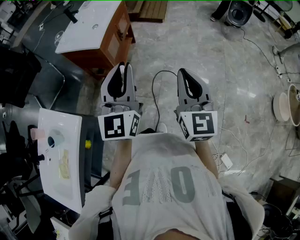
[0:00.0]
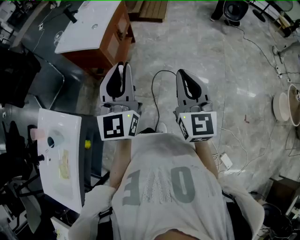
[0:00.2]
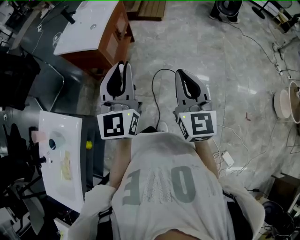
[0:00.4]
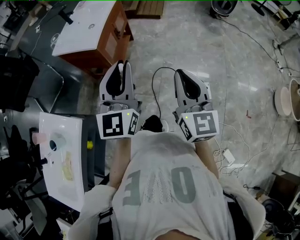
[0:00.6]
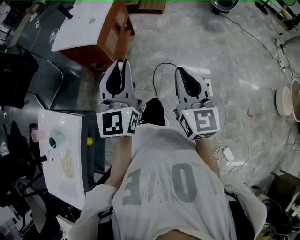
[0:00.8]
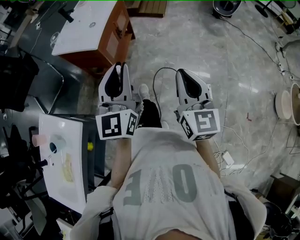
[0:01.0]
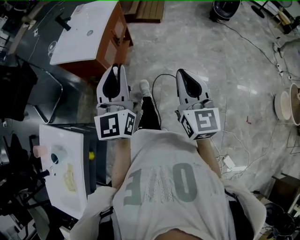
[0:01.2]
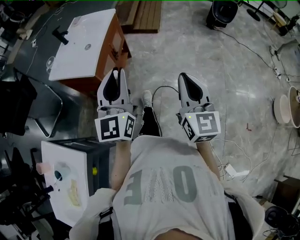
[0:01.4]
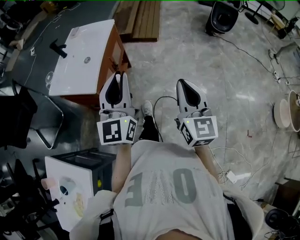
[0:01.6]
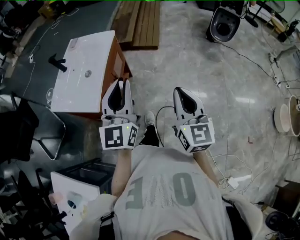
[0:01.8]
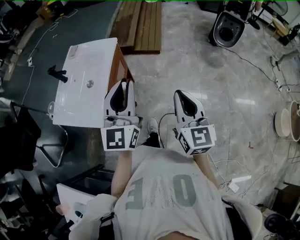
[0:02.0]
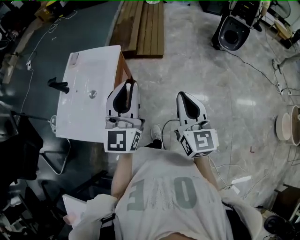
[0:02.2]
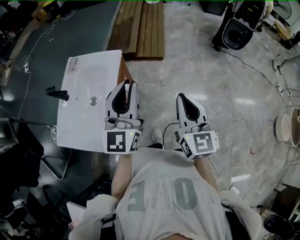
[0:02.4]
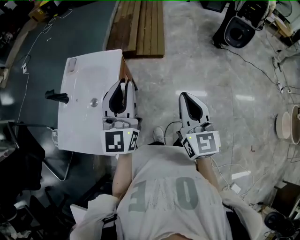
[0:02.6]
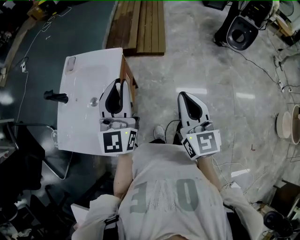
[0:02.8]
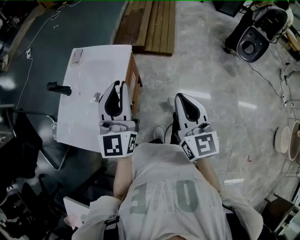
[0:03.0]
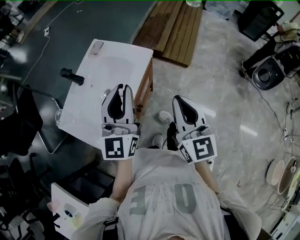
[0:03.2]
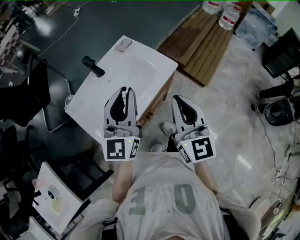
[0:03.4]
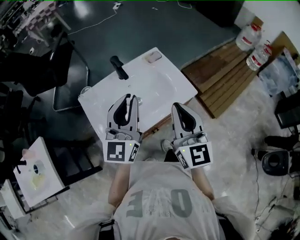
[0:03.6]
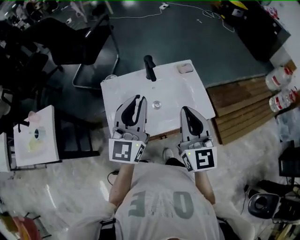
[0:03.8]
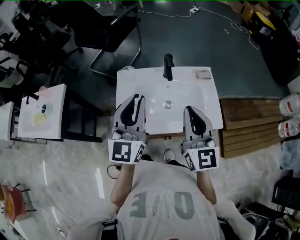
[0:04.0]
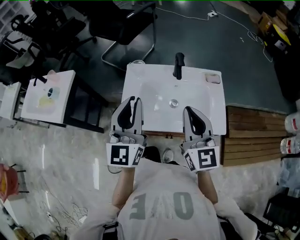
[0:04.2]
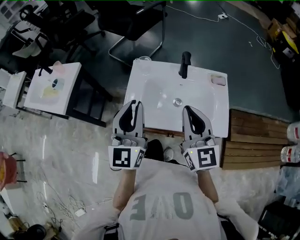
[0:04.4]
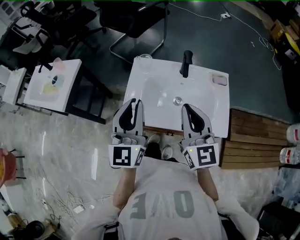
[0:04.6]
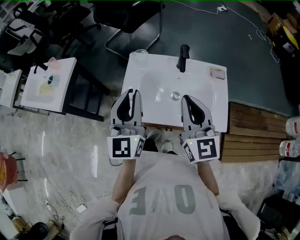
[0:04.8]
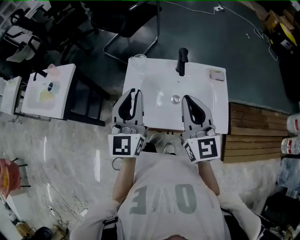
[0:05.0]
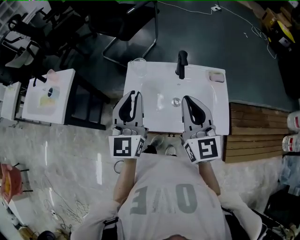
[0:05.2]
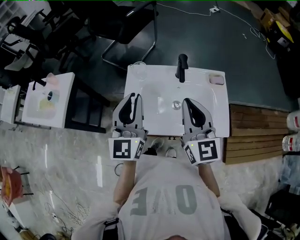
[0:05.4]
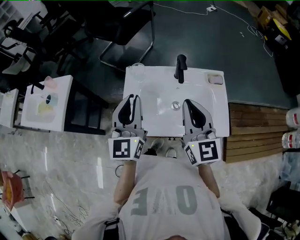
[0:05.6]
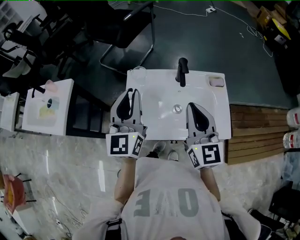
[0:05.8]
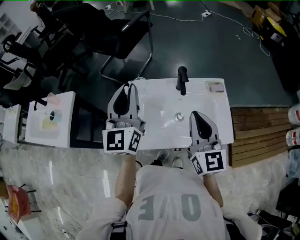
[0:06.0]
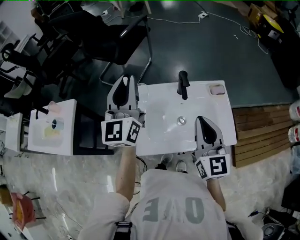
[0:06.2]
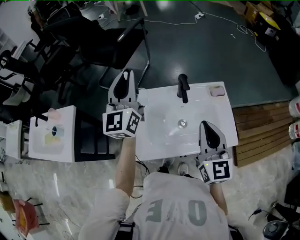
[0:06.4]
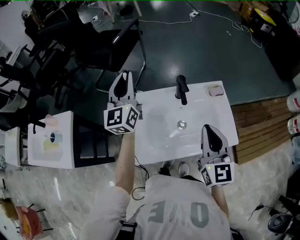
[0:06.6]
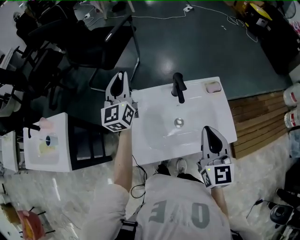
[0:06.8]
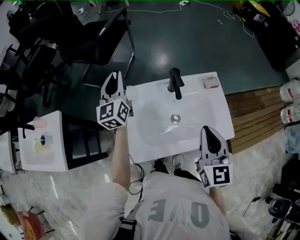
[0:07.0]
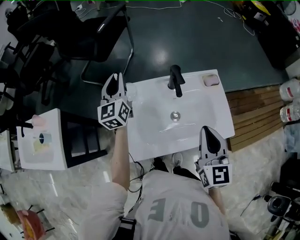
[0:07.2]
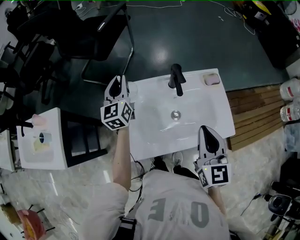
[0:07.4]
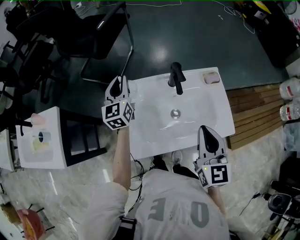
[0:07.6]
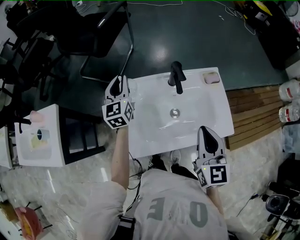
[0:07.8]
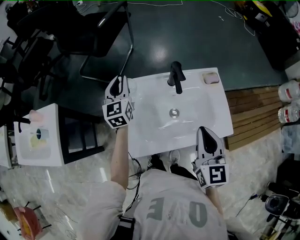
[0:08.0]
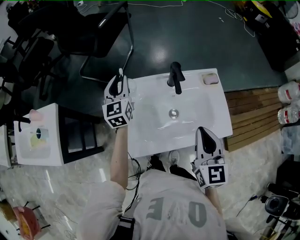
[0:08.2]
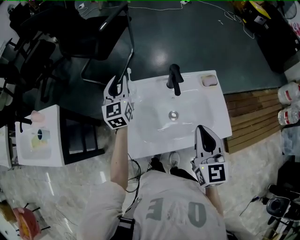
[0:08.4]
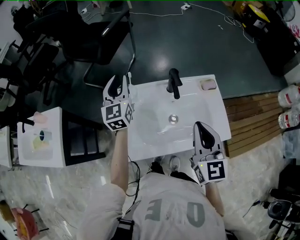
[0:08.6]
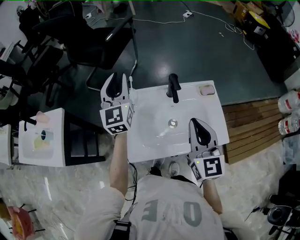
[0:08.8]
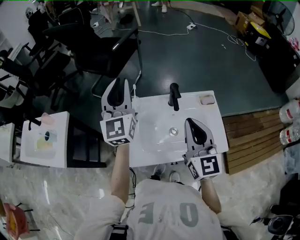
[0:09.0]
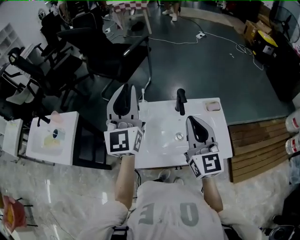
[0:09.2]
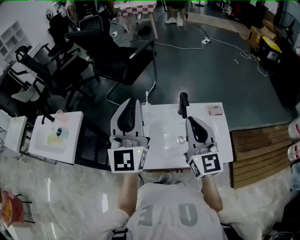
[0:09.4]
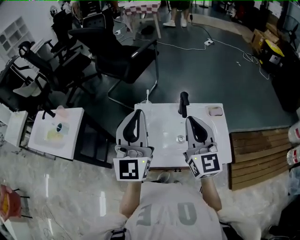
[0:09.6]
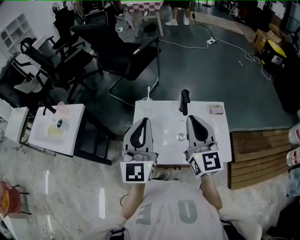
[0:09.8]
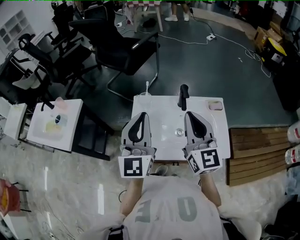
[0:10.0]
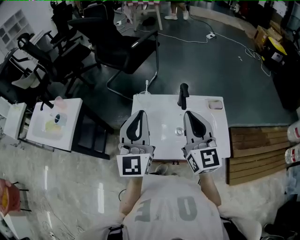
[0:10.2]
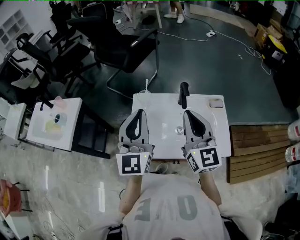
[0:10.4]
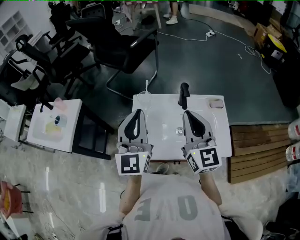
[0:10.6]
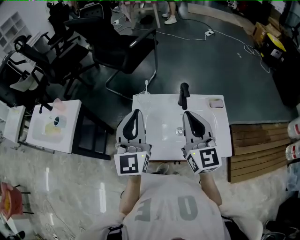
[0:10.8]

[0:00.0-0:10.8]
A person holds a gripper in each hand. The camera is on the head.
0:00.0 to 0:01.6: The two grippers go about 25 cm forward.
0:01.6 to 0:03.0: Both grippers move forward, some 35 cm.
0:03.0 to 0:04.6: The left gripper changes place by about 20 cm, and turns by approximately 90 degrees, while the right gripper changes place by about 30 cm, and turns by approximately 90 degrees.
0:04.6 to 0:06.2: The right gripper shifts some 5 cm forward. The left gripper is displaced forward by about 20 cm.
0:06.2 to 0:07.8: The left gripper heads downward and forward, covering some 25 cm, and changes its angle by approximately 20 degrees; the right gripper shifts approximately 5 cm downward.
0:07.8 to 0:09.2: The right gripper shifts some 10 cm upward, and changes its angle by some 30 degrees. The left gripper is displaced upward and backward by about 30 cm, and changes its angle by some 30 degrees.
0:09.2 to 0:10.8: The left gripper is displaced backward and downward by about 10 cm.

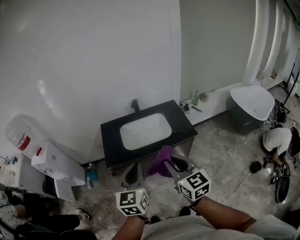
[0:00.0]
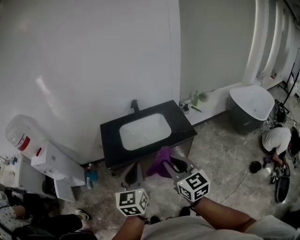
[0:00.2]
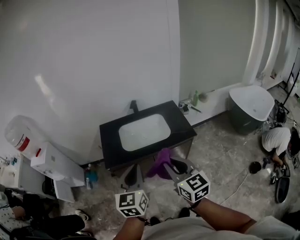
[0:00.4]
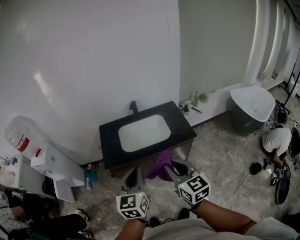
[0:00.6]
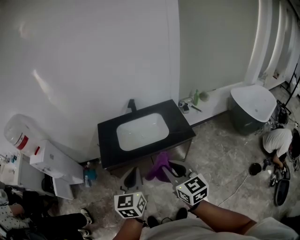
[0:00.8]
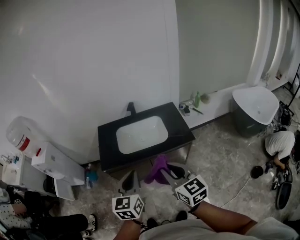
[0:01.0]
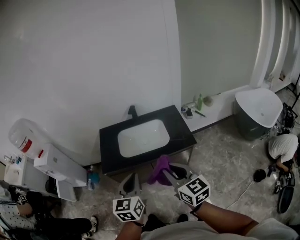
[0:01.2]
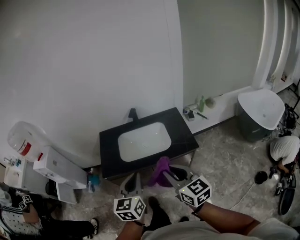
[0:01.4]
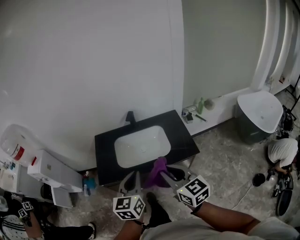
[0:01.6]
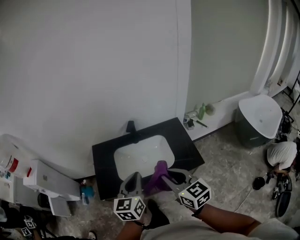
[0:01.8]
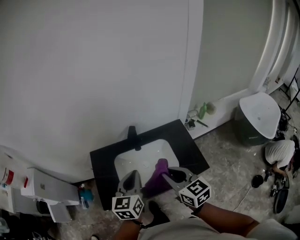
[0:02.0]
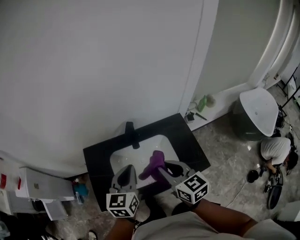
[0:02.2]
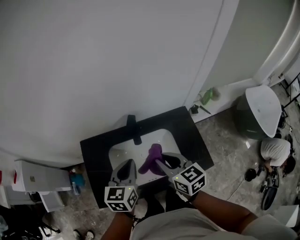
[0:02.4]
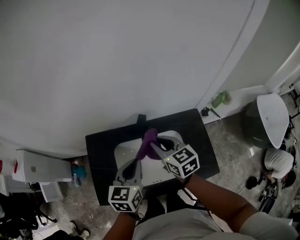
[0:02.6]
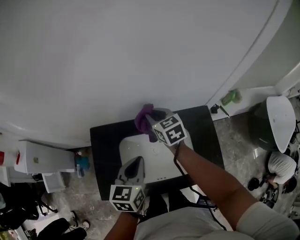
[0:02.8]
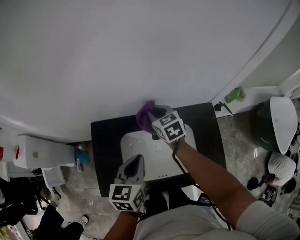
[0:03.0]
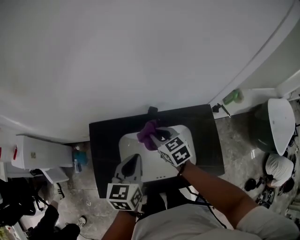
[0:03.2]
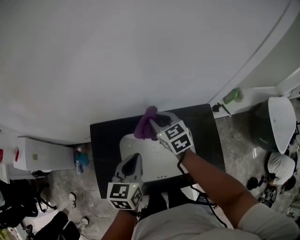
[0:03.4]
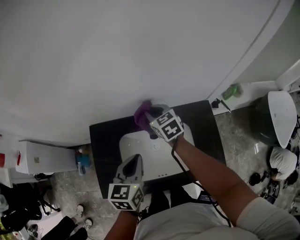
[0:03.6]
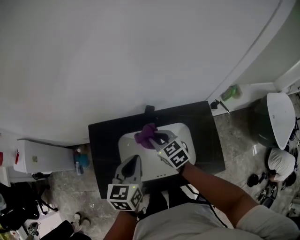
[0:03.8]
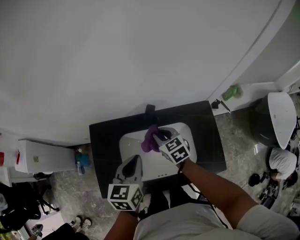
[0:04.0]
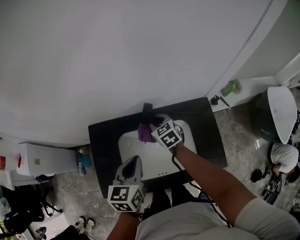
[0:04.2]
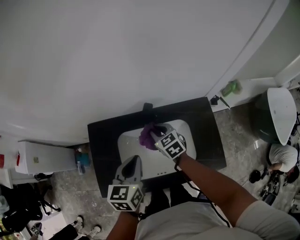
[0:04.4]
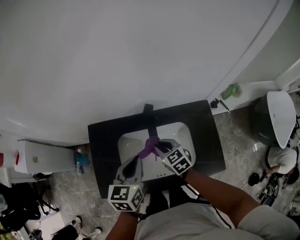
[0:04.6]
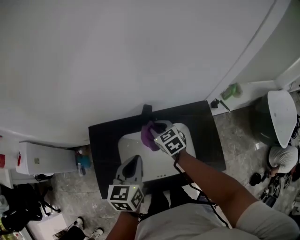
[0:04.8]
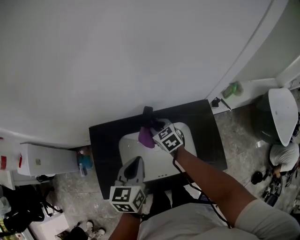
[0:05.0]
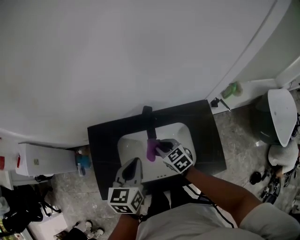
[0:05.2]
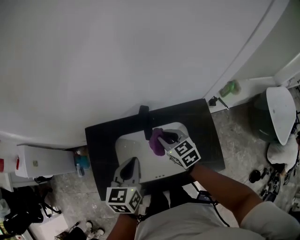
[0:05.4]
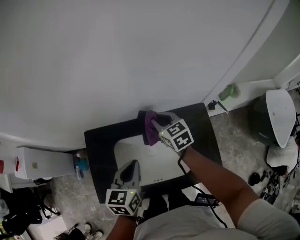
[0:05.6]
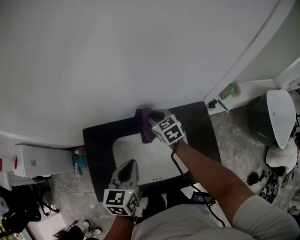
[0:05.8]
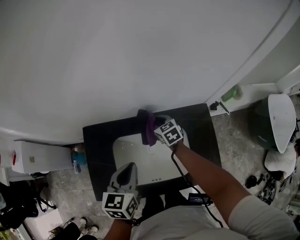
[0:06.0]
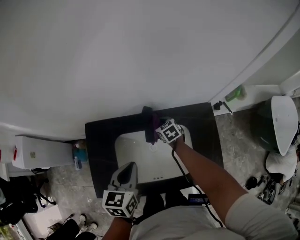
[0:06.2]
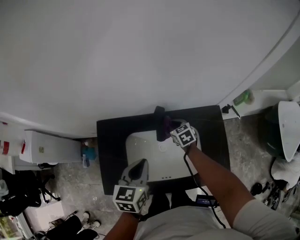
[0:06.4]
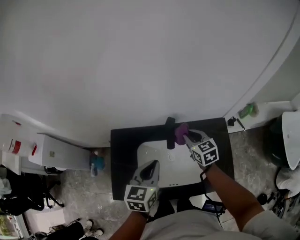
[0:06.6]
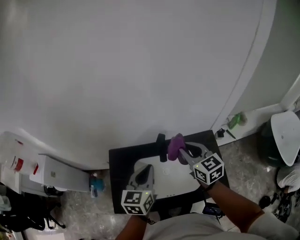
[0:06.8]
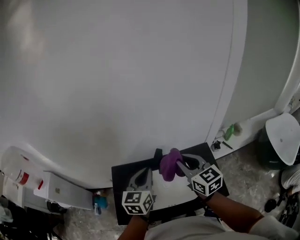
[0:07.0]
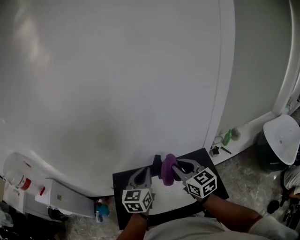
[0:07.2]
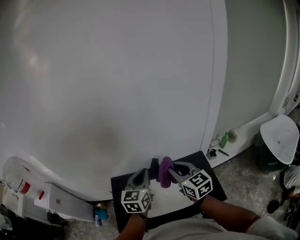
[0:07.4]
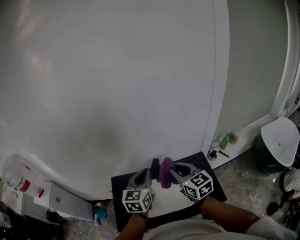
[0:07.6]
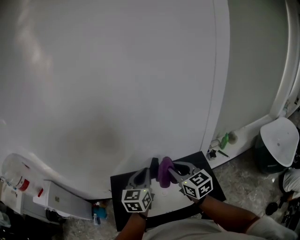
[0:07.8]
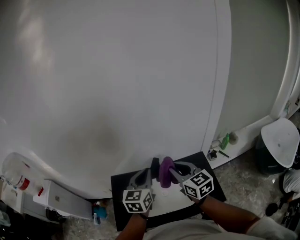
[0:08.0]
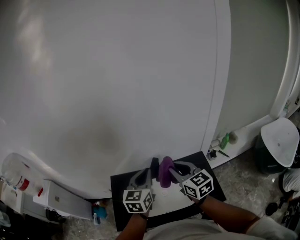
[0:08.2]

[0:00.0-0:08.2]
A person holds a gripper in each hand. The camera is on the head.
0:00.0 to 0:01.6: The left gripper goes approximately 20 cm forward, to the right and downward. Meanwhile the right gripper is displaced forward and to the right by approximately 15 cm.
0:01.6 to 0:03.2: The left gripper is displaced forward by about 35 cm. The right gripper heads forward and downward, covering approximately 50 cm, and rotates approximately 30 degrees.
0:03.2 to 0:05.0: The right gripper moves forward and backward over approximately 15 cm, changing direction 4 times.
0:05.0 to 0:06.6: The right gripper goes up and down, some 20 cm each way, reversing 2 times.
0:06.6 to 0:08.2: The left gripper moves upward, some 15 cm. The right gripper is displaced upward and backward by approximately 25 cm, and turns by some 20 degrees.

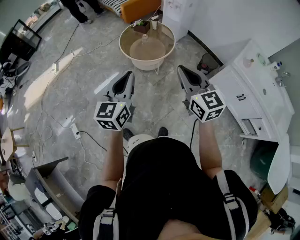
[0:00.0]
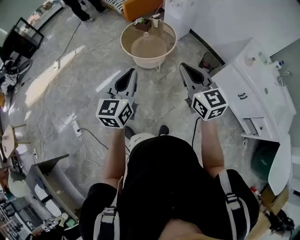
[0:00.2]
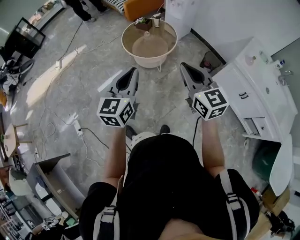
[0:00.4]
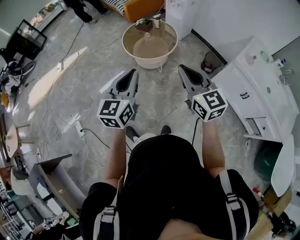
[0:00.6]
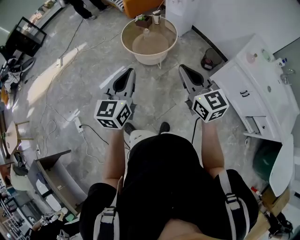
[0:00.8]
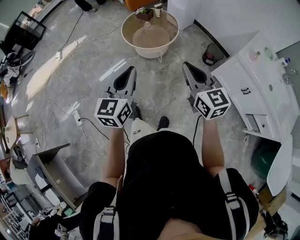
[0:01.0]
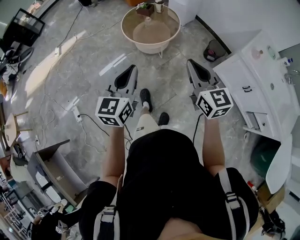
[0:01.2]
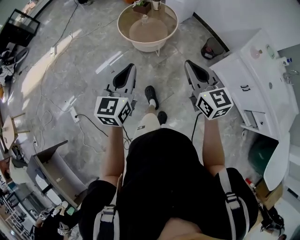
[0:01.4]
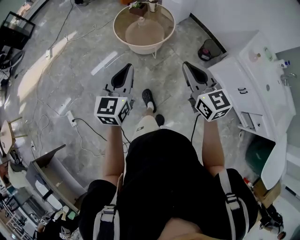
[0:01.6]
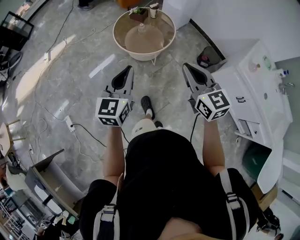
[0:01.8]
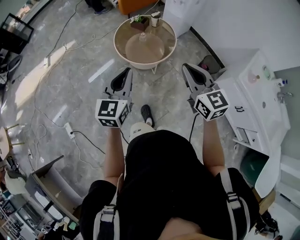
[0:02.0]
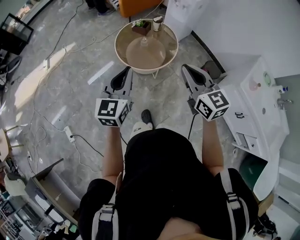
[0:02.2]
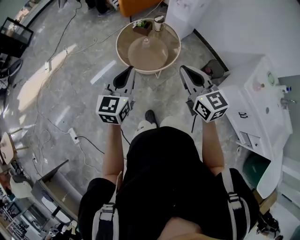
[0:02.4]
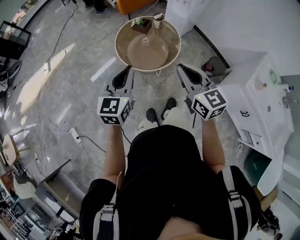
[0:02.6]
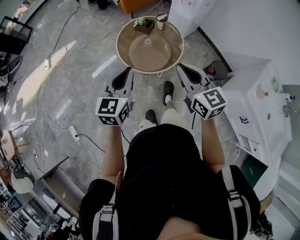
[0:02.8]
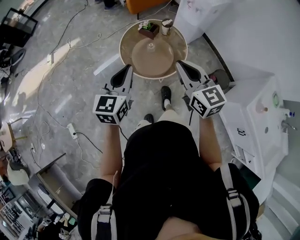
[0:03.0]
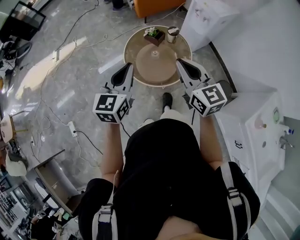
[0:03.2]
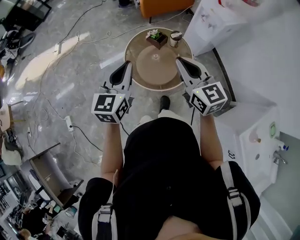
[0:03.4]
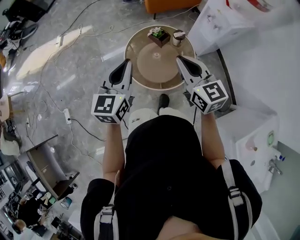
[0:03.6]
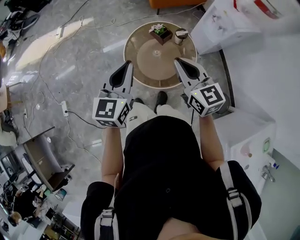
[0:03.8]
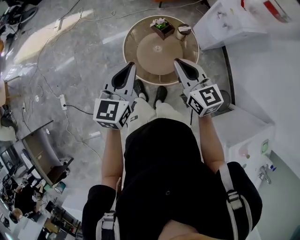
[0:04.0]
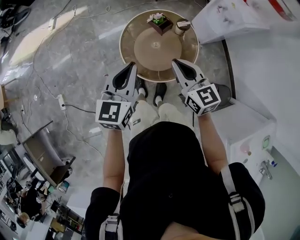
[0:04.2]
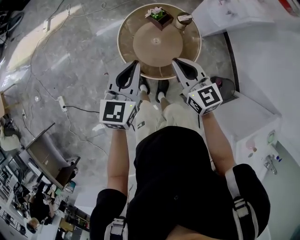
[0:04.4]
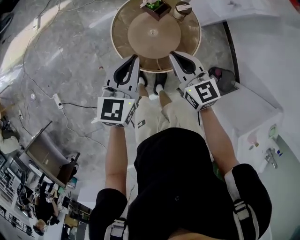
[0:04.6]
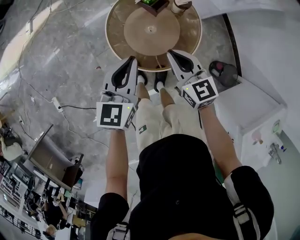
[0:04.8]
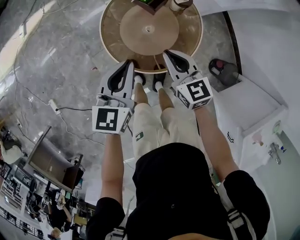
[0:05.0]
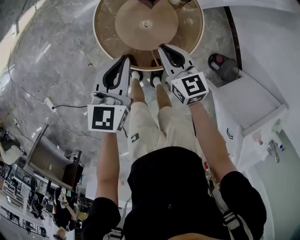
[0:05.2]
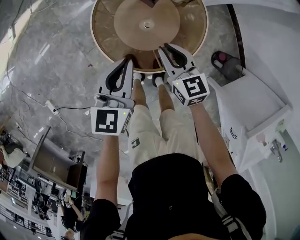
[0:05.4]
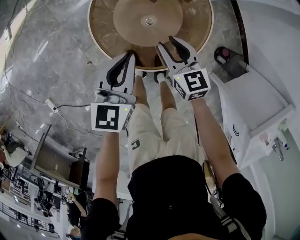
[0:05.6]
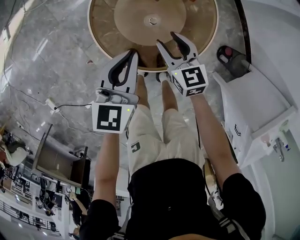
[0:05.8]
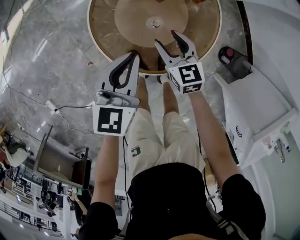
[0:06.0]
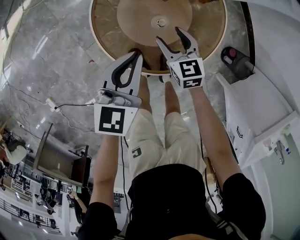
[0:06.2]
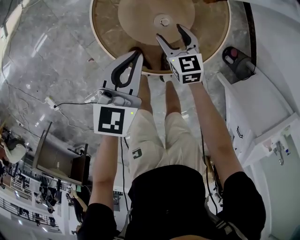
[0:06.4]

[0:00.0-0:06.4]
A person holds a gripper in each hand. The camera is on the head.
0:00.0 to 0:01.6: The left gripper travels forward and downward by about 10 cm; the right gripper is displaced to the right and downward by approximately 10 cm.
0:01.6 to 0:03.2: The grippers both shift forward by approximately 40 cm.
0:03.2 to 0:04.8: Both grippers travel together downward and forward, roughly 25 cm.
0:04.8 to 0:06.4: Both grippers move downward, approximately 25 cm. The right gripper rotates some 20 degrees, and opens its fingers.
